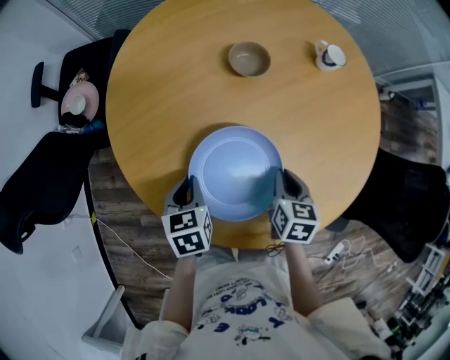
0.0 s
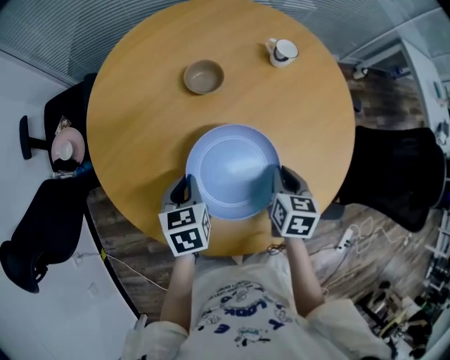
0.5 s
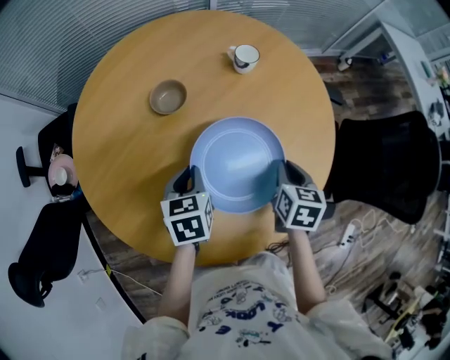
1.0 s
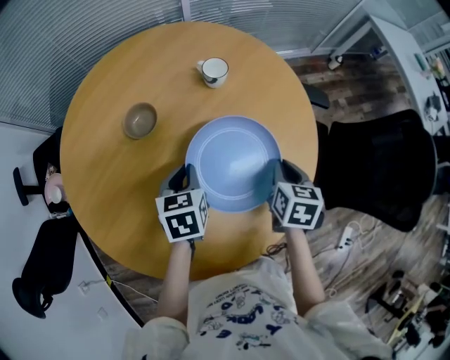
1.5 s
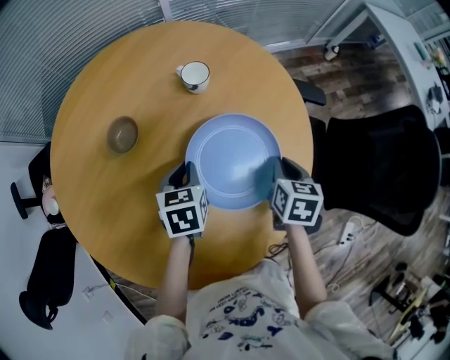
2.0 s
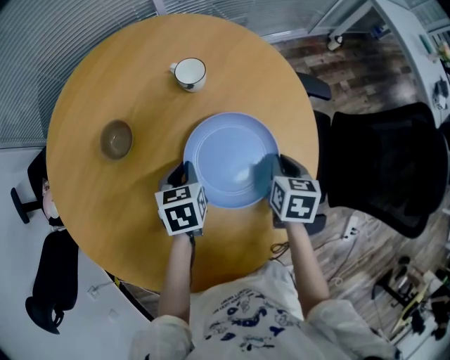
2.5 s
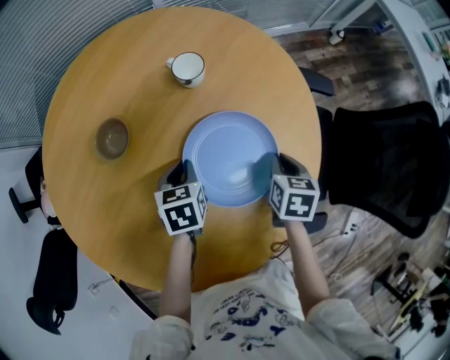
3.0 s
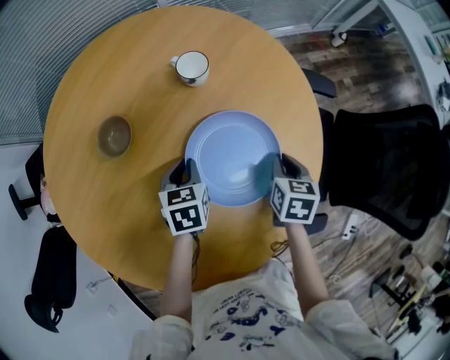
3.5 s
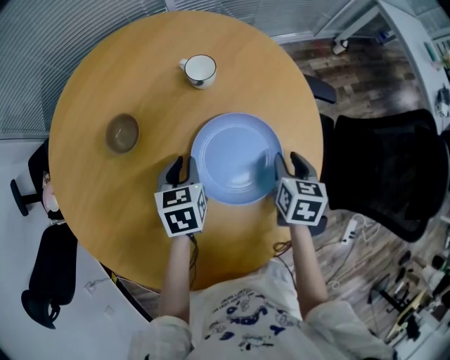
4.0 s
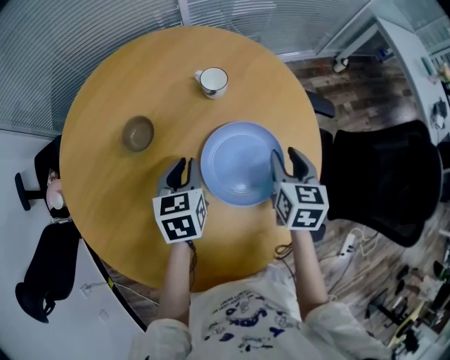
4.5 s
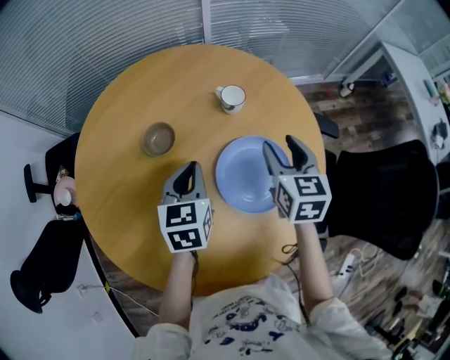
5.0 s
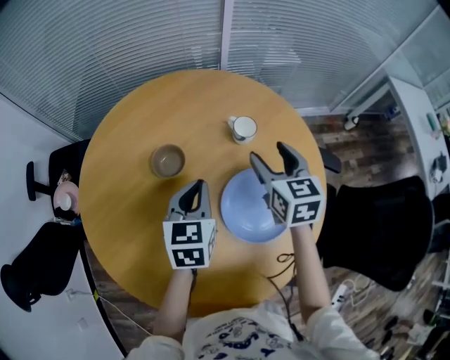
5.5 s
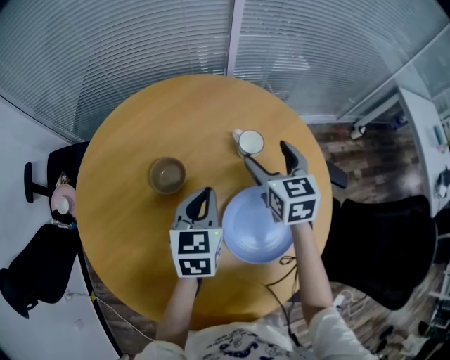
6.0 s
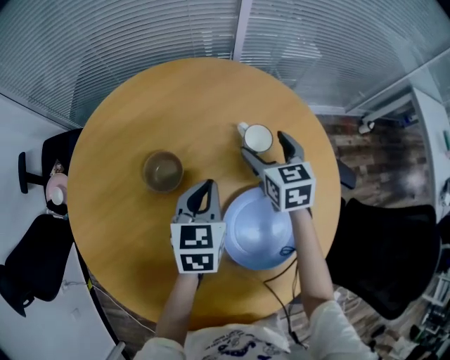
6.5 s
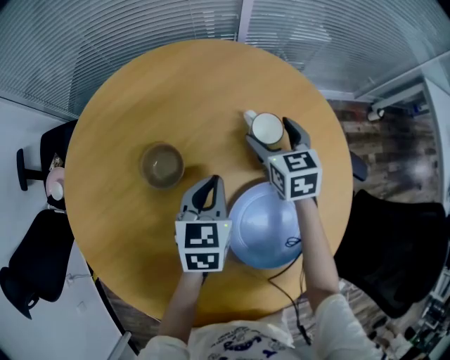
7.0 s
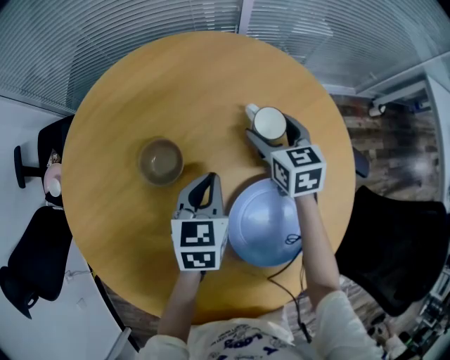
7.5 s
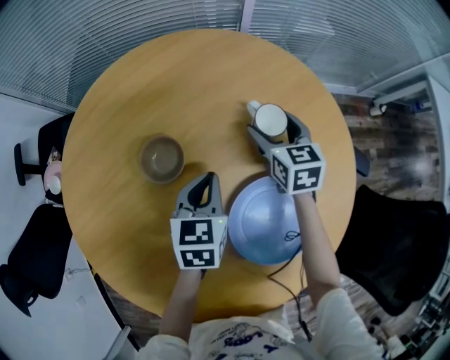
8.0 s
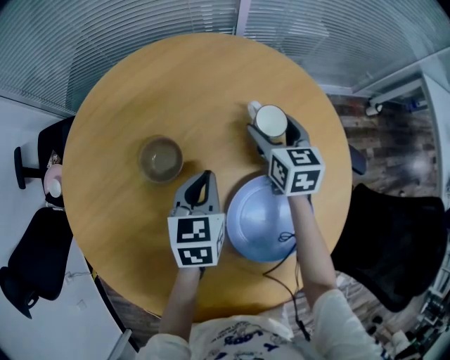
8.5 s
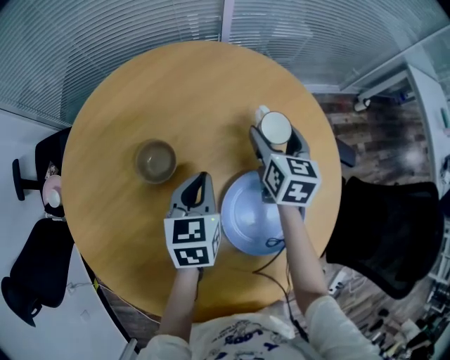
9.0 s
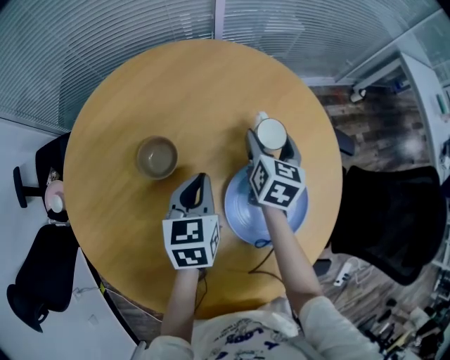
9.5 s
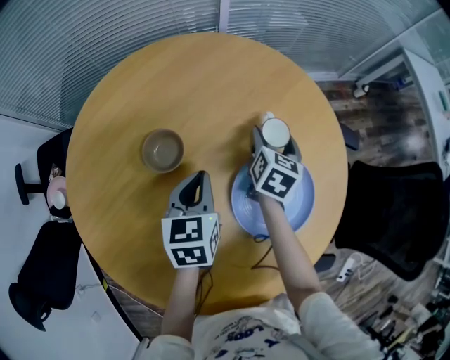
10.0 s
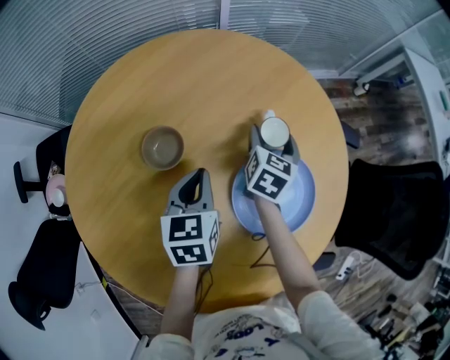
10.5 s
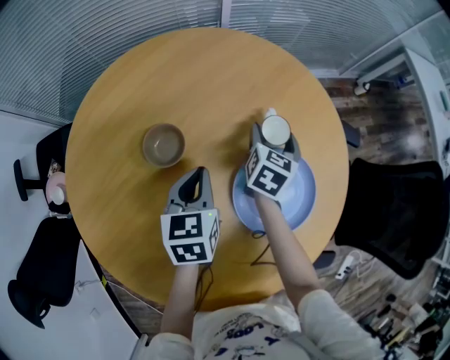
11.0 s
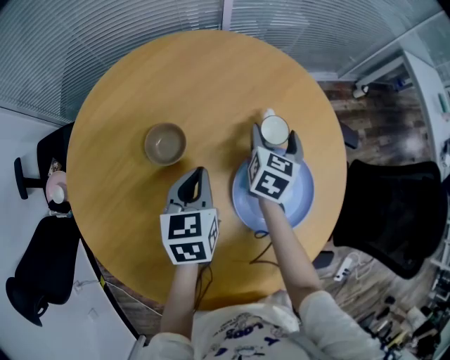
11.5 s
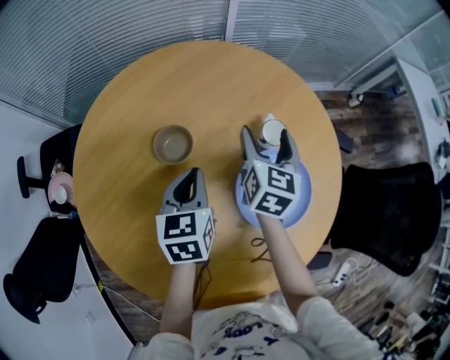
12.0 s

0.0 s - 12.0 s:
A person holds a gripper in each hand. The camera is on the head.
0.0 s - 2.0 s: The right gripper is displaced to the right and forward by roughly 30 cm, and rotates approximately 20 degrees; the left gripper moves forward and to the right, about 35 cm, and swivels approximately 30 degrees.
2.0 s - 4.0 s: The grippers make only small movements.
4.0 s - 6.0 s: The right gripper heads forward, to the left and upward, covering some 30 cm, rotates about 40 degrees, and opens its fingers; the left gripper heads upward and forward, covering about 15 cm.
6.0 s - 8.0 s: The left gripper moves downward, approximately 10 cm. The right gripper heads downward and forward, covering some 15 cm.
8.0 s - 10.0 s: The left gripper ends up some 5 cm from where it was. Meanwhile the right gripper is displaced backward and to the right by some 10 cm, and rotates roughly 40 degrees.
10.0 s - 12.0 s: The left gripper ends up roughly 5 cm from where it was, while the right gripper travels upward by about 10 cm.

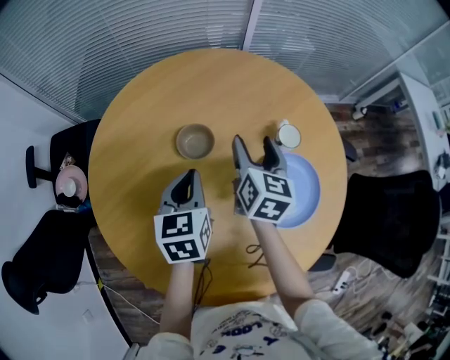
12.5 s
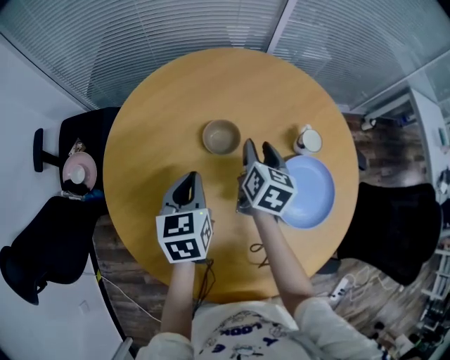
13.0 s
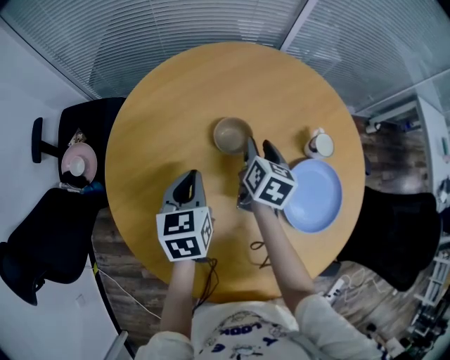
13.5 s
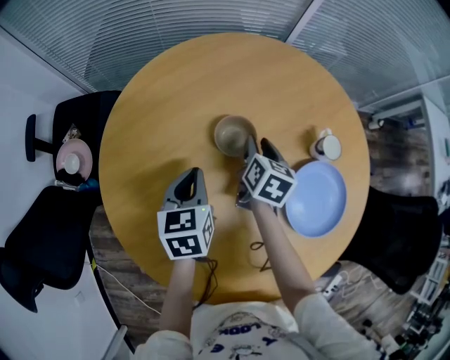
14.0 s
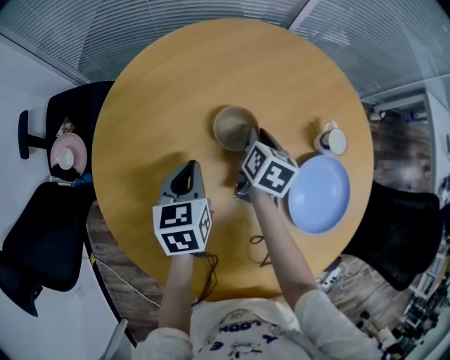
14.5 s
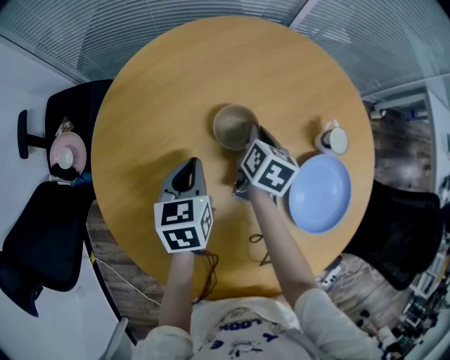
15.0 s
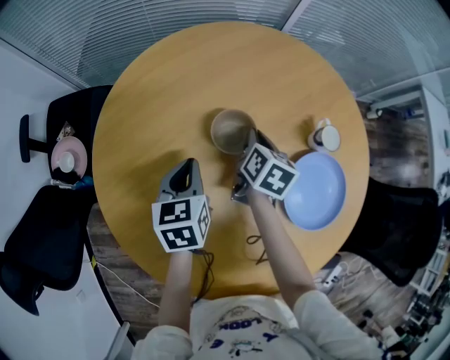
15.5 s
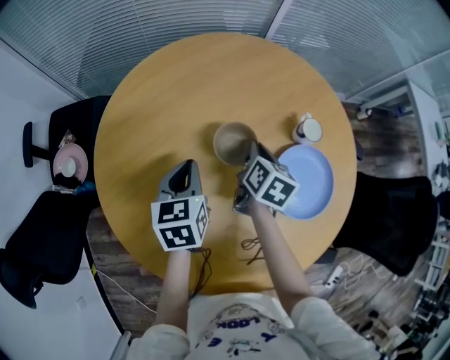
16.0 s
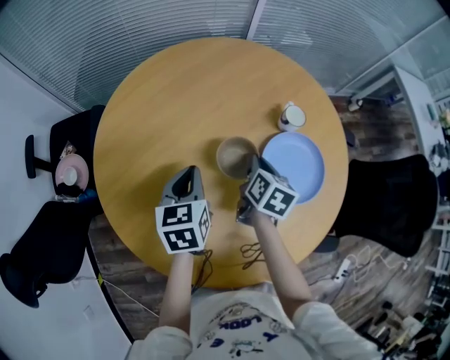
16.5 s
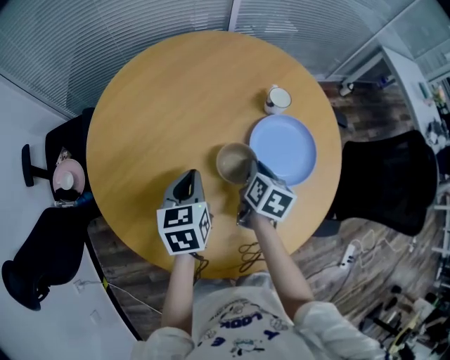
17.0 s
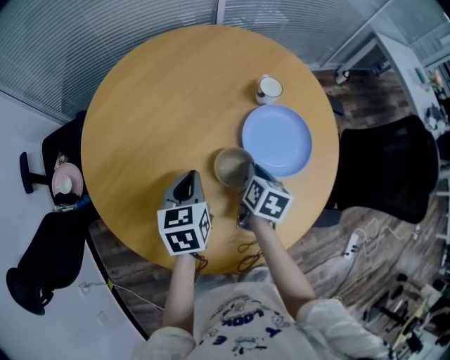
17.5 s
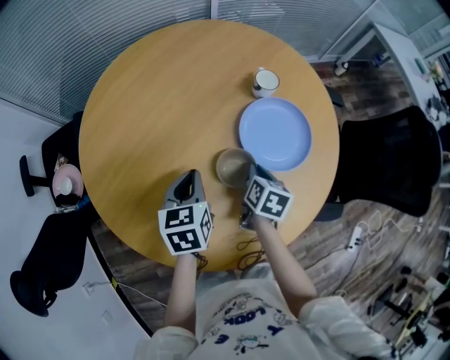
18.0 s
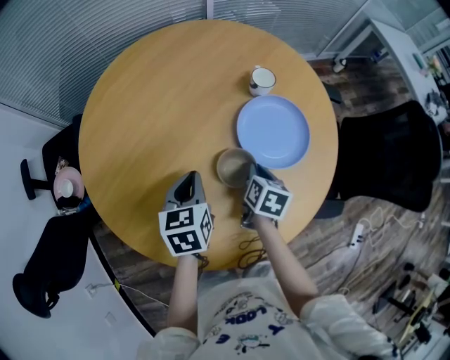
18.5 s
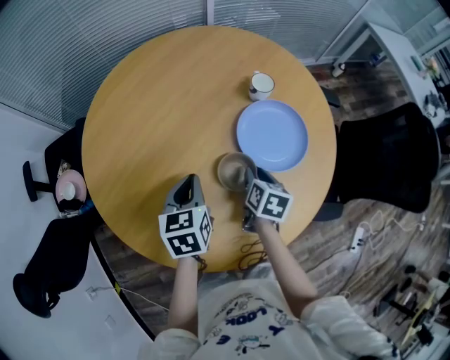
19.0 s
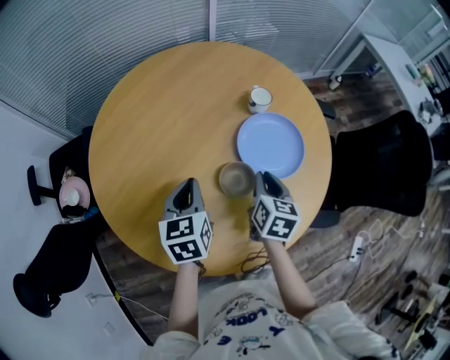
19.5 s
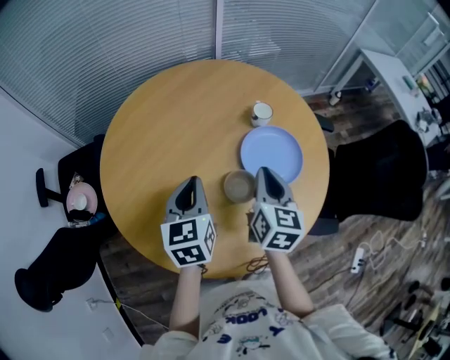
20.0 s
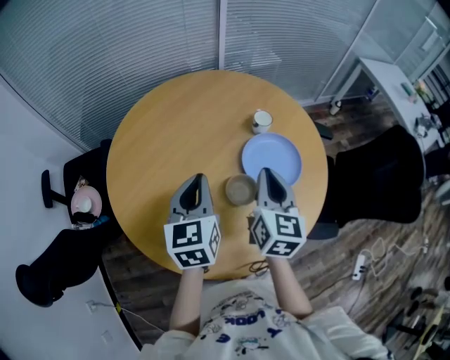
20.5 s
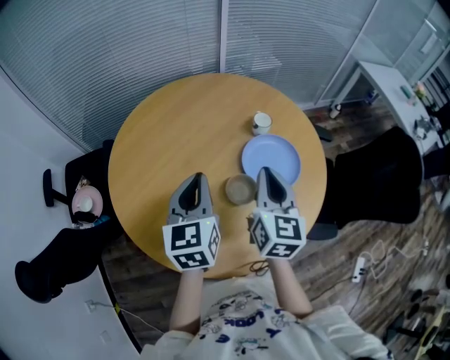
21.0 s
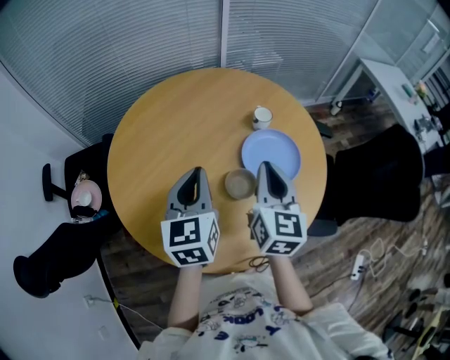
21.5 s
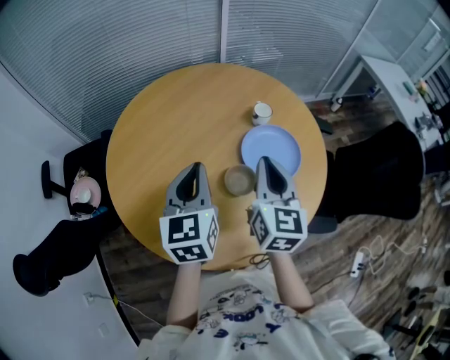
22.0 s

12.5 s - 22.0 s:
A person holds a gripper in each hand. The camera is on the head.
12.5 s - 14.5 s: The right gripper heads downward and to the left, covering approximately 15 cm, rotates approximately 20 degrees, and closes up. The left gripper moves to the left and downward, approximately 15 cm.
14.5 s - 16.5 s: The left gripper shifts approximately 10 cm upward, to the right and backward. The right gripper travels backward, to the right and upward by some 15 cm.
16.5 s - 18.0 s: The left gripper shifts about 10 cm to the right and backward. The right gripper travels backward, to the right and downward by about 15 cm.
18.0 s - 20.0 s: The left gripper is displaced upward by approximately 10 cm. Meanwhile the right gripper goes some 20 cm upward, and changes its angle by some 30 degrees.
20.0 s - 22.0 s: The grippers both shift upward by approximately 10 cm.
